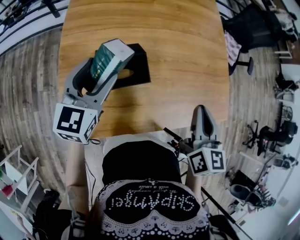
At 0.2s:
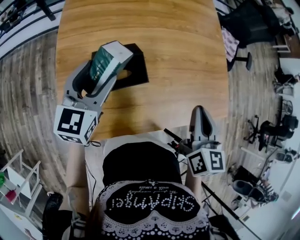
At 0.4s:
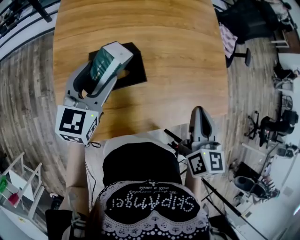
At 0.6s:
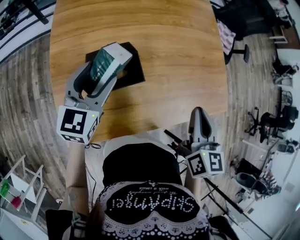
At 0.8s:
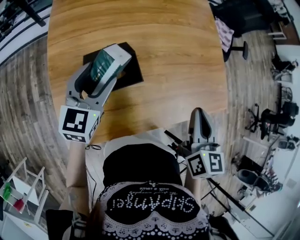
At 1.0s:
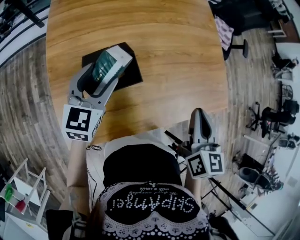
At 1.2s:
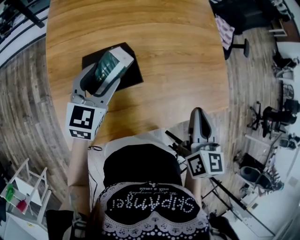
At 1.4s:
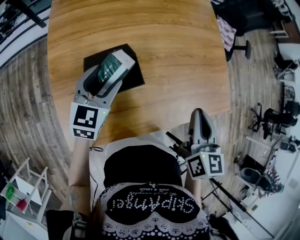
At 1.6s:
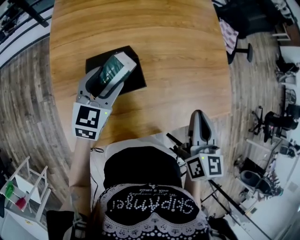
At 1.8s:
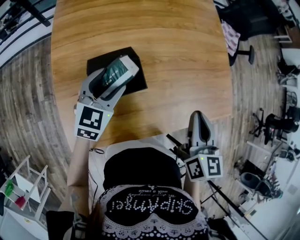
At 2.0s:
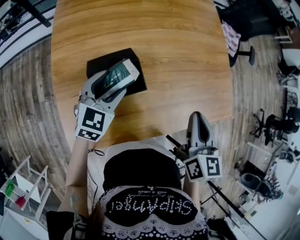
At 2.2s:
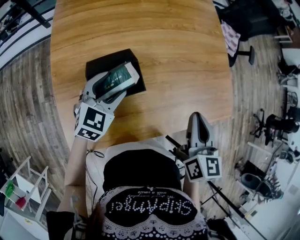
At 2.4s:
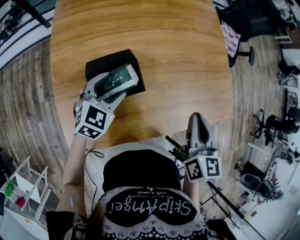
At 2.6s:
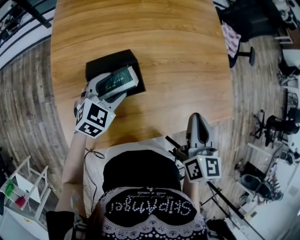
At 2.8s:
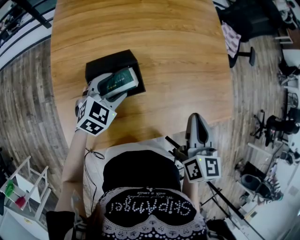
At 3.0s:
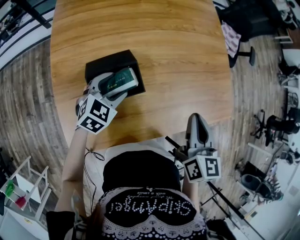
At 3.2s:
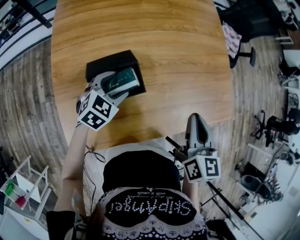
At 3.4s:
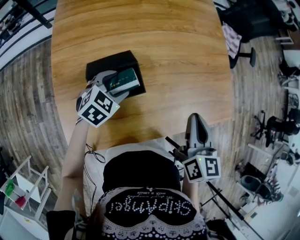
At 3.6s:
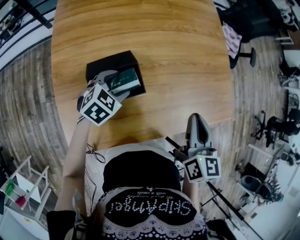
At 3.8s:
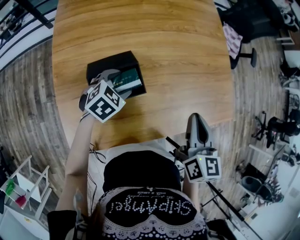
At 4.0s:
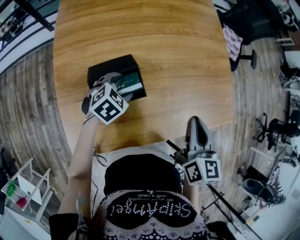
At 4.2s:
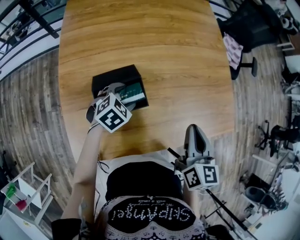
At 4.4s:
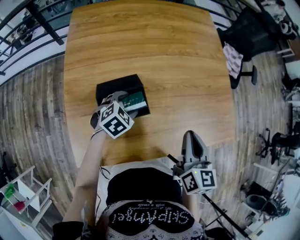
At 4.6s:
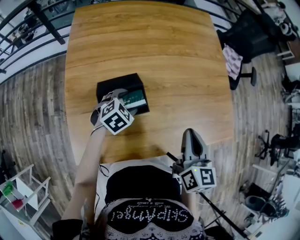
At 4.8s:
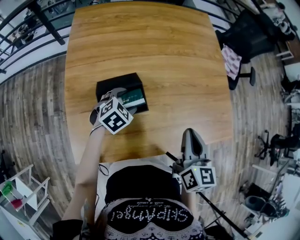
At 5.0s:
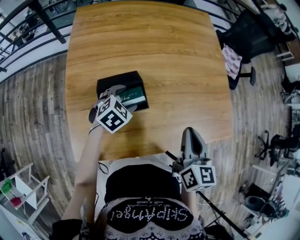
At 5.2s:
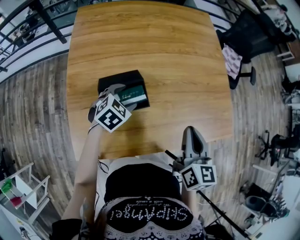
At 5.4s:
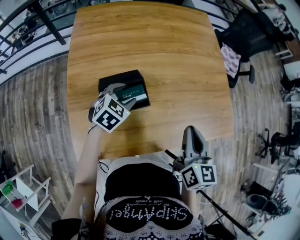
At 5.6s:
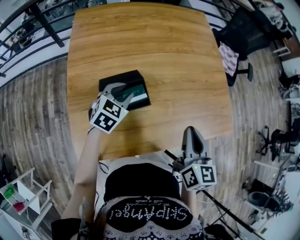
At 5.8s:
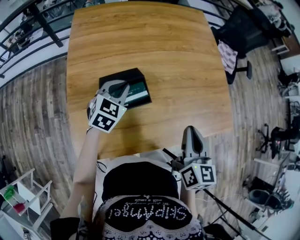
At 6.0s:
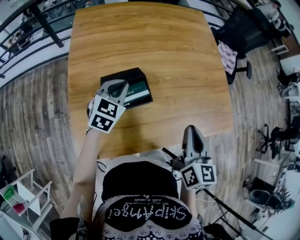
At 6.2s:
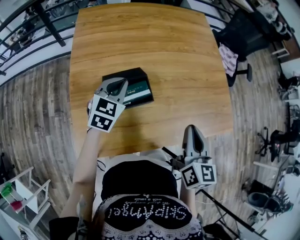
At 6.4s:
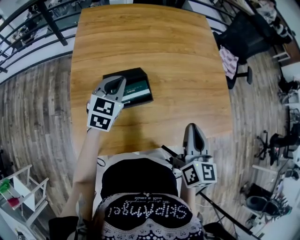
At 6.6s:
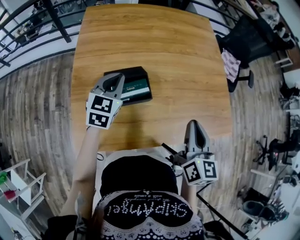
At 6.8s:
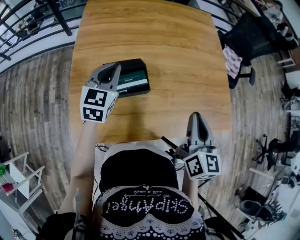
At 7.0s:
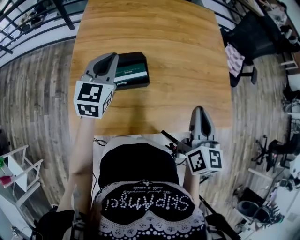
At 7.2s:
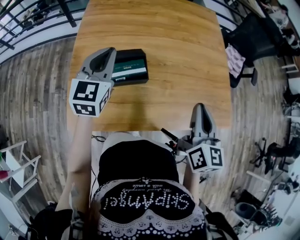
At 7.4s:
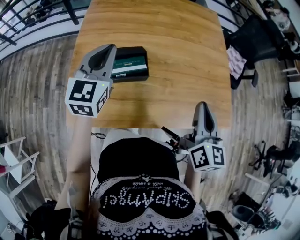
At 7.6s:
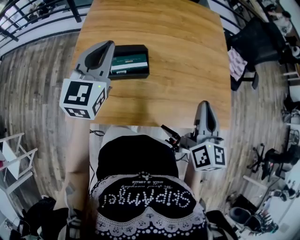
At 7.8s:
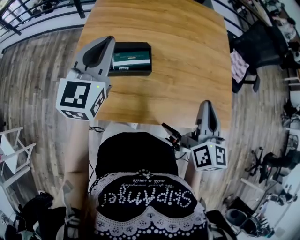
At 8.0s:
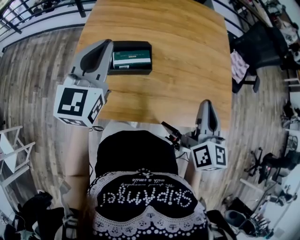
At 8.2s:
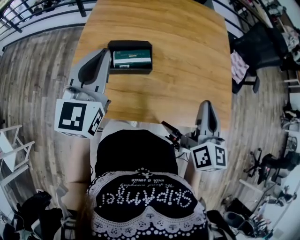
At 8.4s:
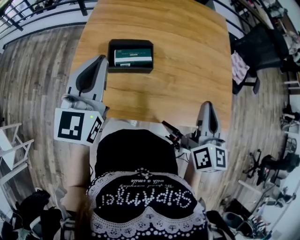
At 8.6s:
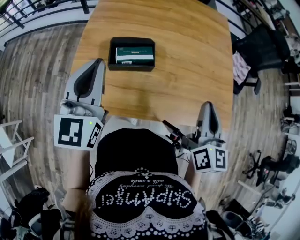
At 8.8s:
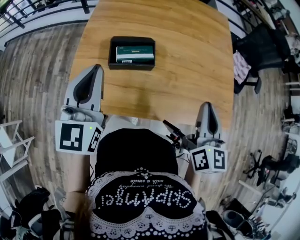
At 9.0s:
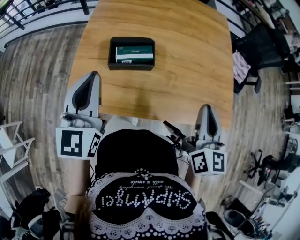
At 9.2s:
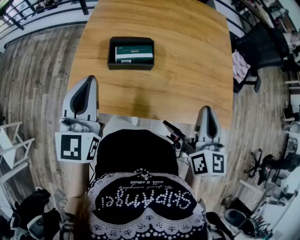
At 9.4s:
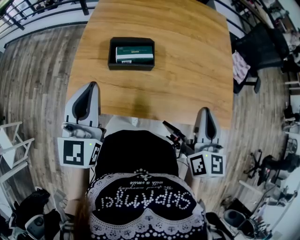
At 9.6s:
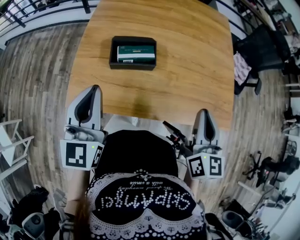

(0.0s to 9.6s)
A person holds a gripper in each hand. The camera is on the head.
0.0s - 1.6s: The left gripper goes approximately 10 cm downward.
1.6s - 3.2s: The left gripper heads downward, covering approximately 10 cm, and turns by about 30 degrees.
3.2s - 4.8s: The grippers make only small movements.
4.8s - 6.4s: The left gripper heads upward and to the left, covering some 15 cm, swivels approximately 40 degrees, and closes.
6.4s - 8.0s: The left gripper travels upward and backward by approximately 20 cm, and changes its angle by about 30 degrees; the right gripper shifts about 5 cm to the right.
8.0s - 9.6s: The left gripper heads backward and downward, covering some 15 cm.

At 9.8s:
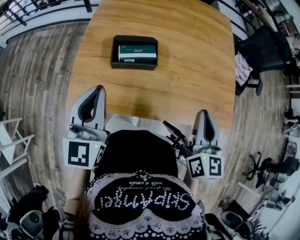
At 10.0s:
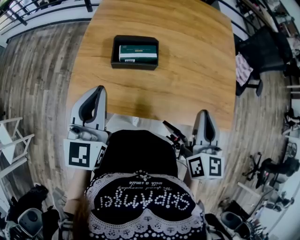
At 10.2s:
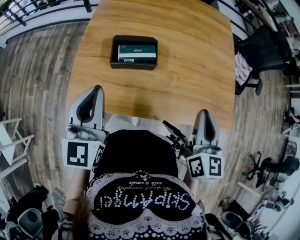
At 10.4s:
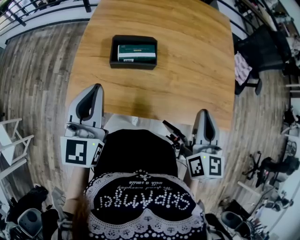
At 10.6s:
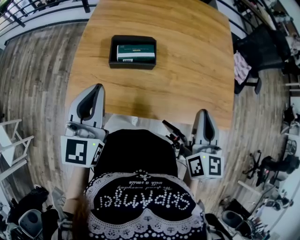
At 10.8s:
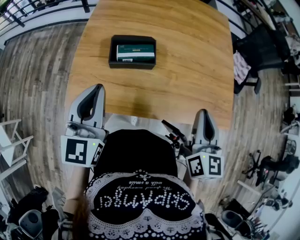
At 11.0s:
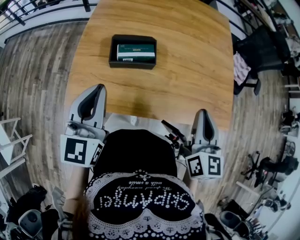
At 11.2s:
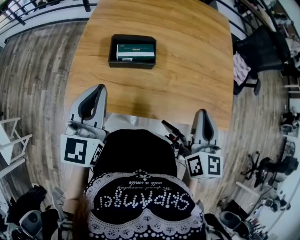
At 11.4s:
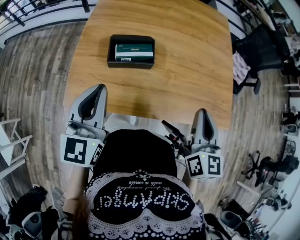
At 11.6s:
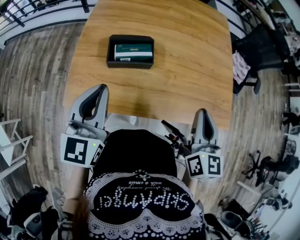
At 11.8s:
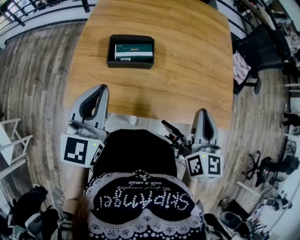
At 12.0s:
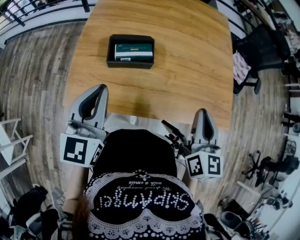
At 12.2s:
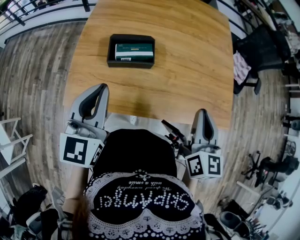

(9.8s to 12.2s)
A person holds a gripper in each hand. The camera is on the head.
9.8s - 11.0s: The two grippers keep their place.
11.0s - 12.2s: Both grippers stay about where they are.

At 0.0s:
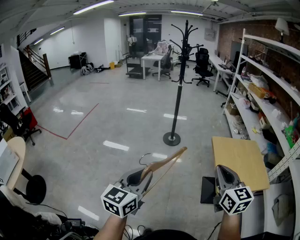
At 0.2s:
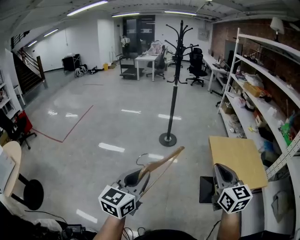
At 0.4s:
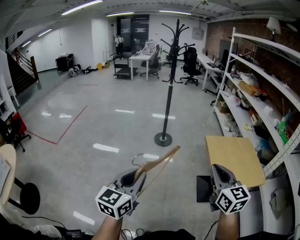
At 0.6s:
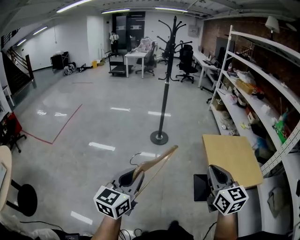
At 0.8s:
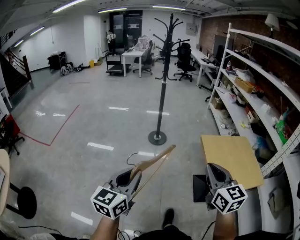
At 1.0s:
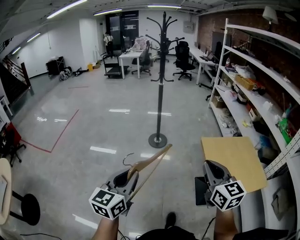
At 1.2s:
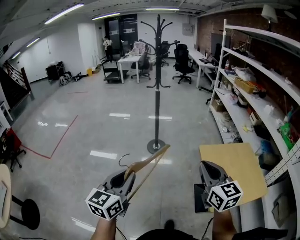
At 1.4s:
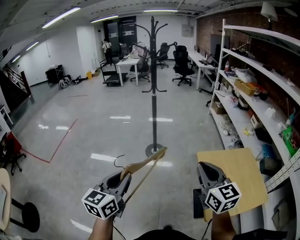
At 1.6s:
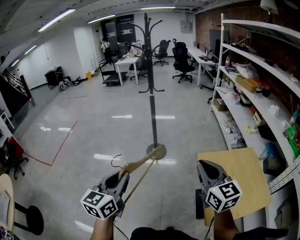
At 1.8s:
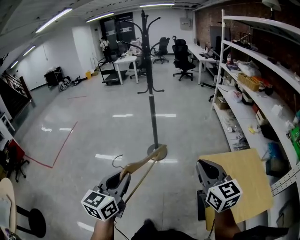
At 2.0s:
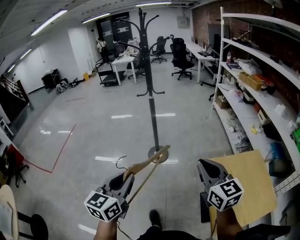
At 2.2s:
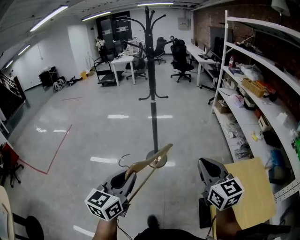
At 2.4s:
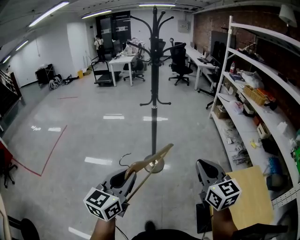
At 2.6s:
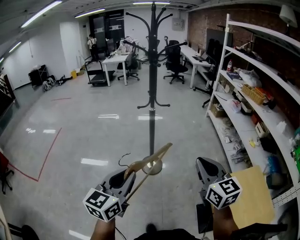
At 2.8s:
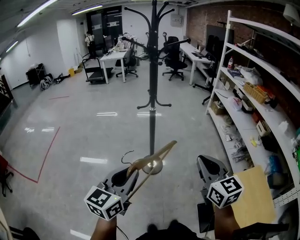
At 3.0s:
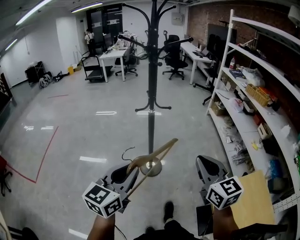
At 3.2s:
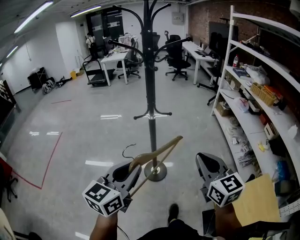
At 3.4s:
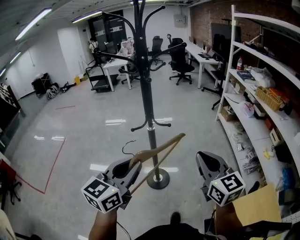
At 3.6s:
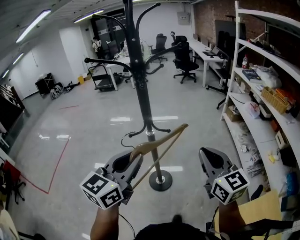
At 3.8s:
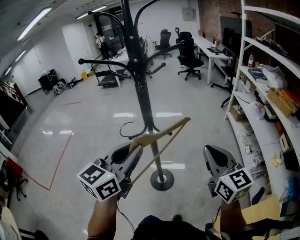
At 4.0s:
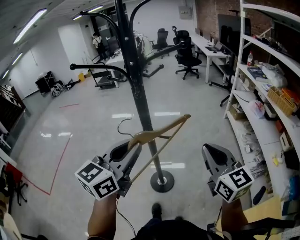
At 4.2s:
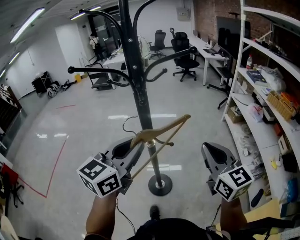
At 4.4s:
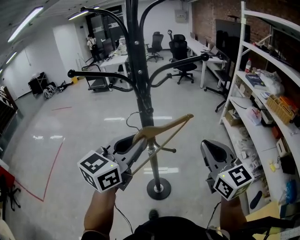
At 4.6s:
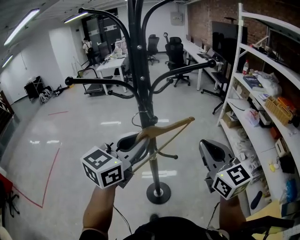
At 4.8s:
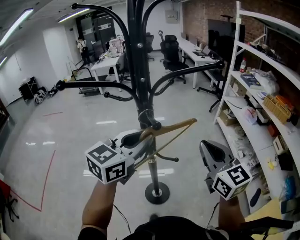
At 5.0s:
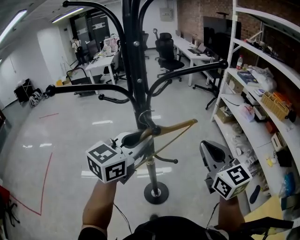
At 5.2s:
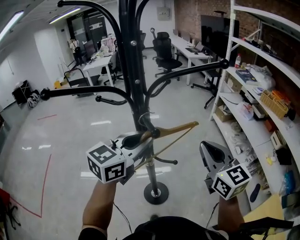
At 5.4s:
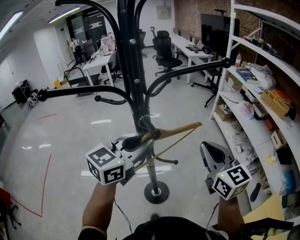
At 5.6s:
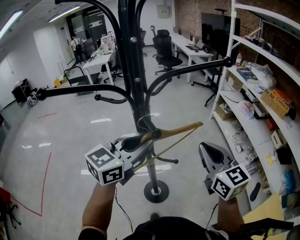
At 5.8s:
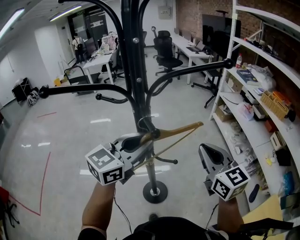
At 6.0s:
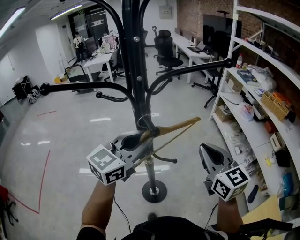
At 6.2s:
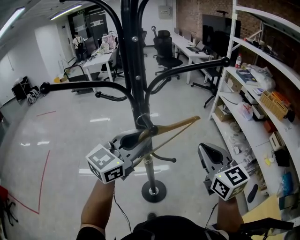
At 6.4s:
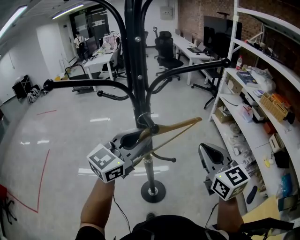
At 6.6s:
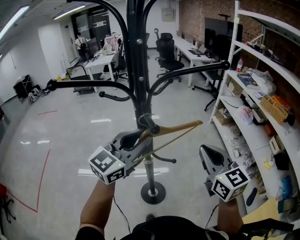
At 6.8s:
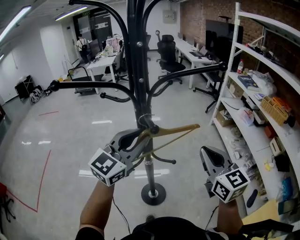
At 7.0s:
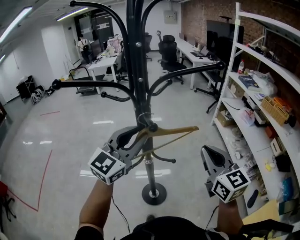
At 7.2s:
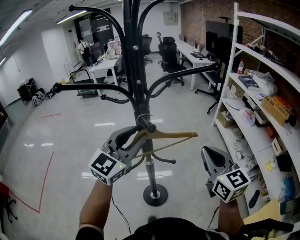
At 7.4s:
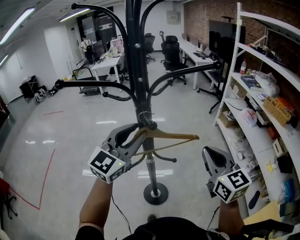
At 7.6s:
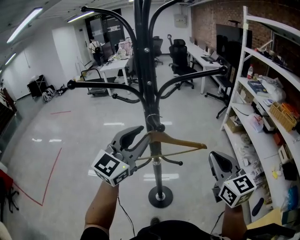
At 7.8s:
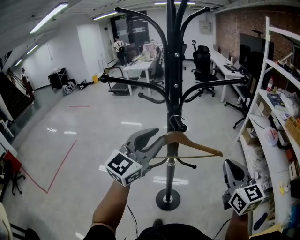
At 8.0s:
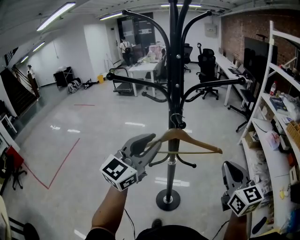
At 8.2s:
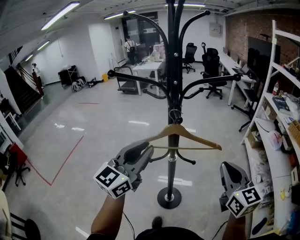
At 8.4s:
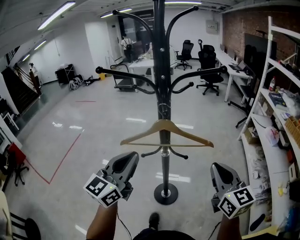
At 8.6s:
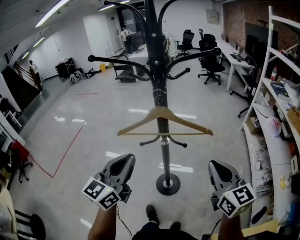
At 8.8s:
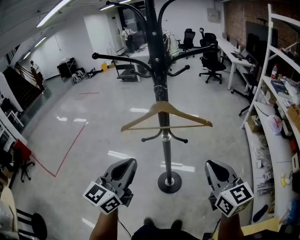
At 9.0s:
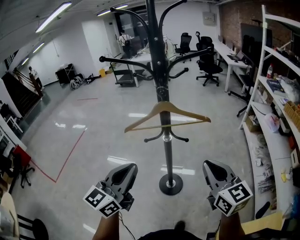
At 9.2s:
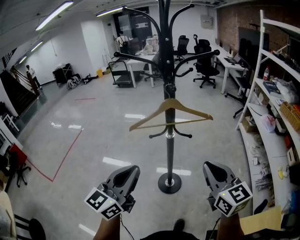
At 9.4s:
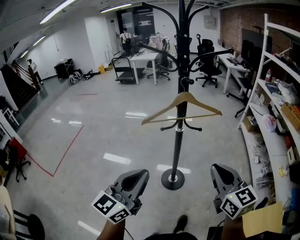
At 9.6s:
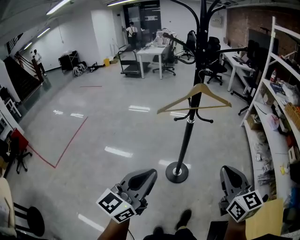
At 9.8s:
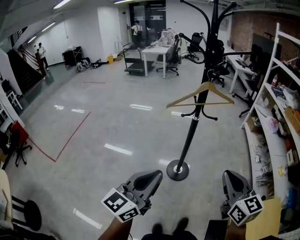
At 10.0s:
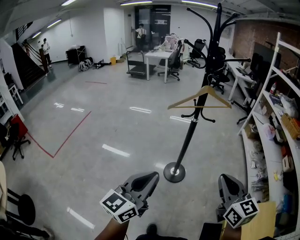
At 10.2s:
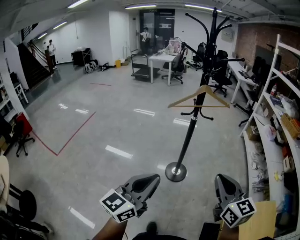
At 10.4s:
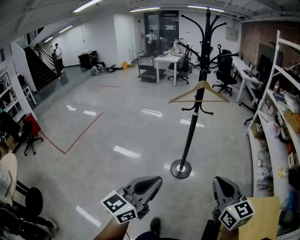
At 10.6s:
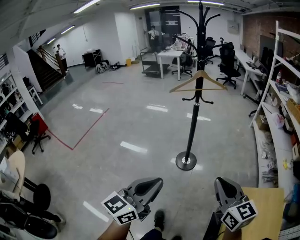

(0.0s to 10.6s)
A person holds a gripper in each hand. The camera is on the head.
0.0s - 1.6s: Both grippers travel together forward, some 25 cm.
1.6s - 3.0s: The grippers both shift forward by about 30 cm.
3.0s - 4.6s: Both grippers move forward, about 35 cm.
4.6s - 6.0s: The right gripper moves approximately 5 cm, while the left gripper heads forward, covering approximately 5 cm.
6.0s - 7.6s: The left gripper swivels some 20 degrees.
7.6s - 9.0s: The right gripper shifts some 10 cm backward. Meanwhile the left gripper heads backward, covering about 25 cm, changes its angle by roughly 30 degrees, and closes.
9.0s - 10.6s: Both grippers travel together backward, some 35 cm.

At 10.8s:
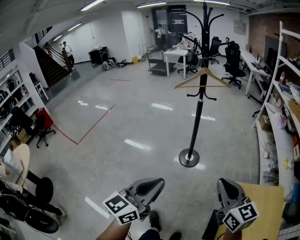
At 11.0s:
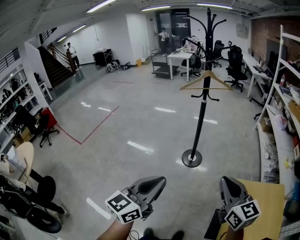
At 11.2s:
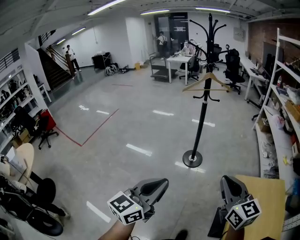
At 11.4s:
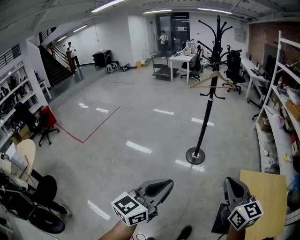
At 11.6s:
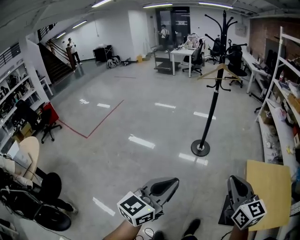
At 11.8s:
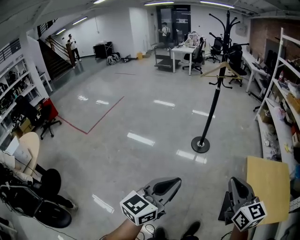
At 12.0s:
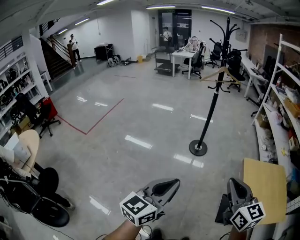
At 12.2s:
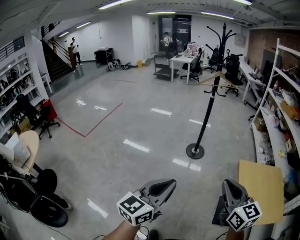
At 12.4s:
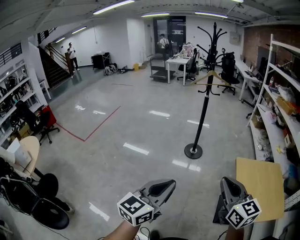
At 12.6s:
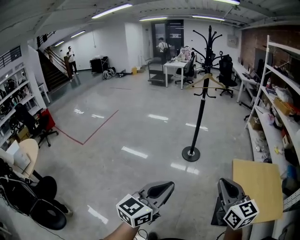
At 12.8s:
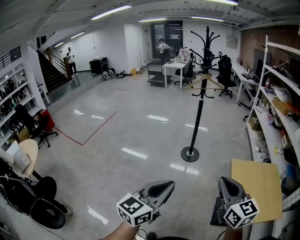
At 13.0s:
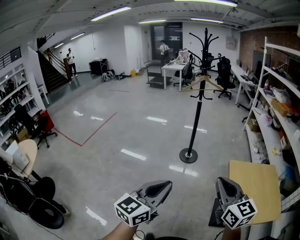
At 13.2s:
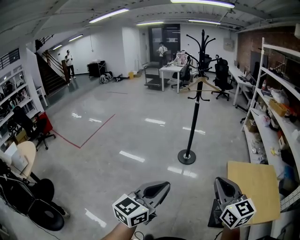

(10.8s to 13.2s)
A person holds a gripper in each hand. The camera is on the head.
10.8s - 12.0s: Both grippers travel together backward and to the left, roughly 25 cm.
12.0s - 13.2s: The two grippers go roughly 10 cm to the right.
